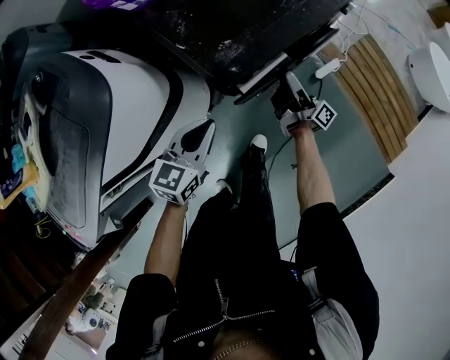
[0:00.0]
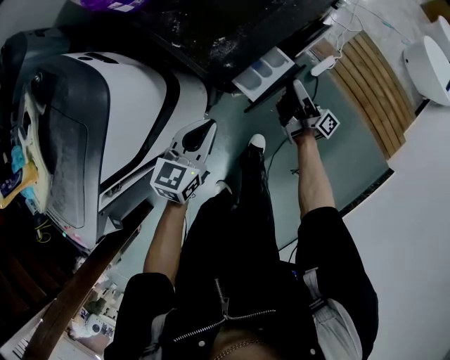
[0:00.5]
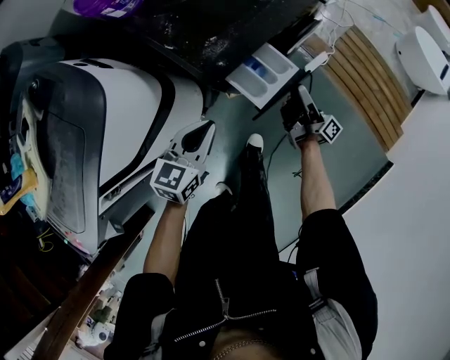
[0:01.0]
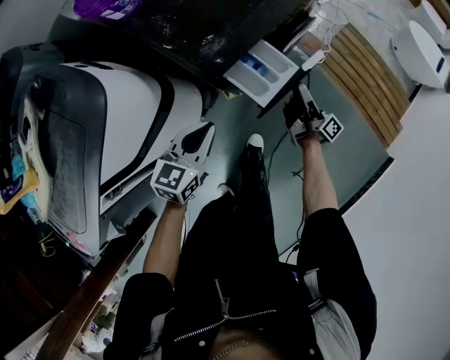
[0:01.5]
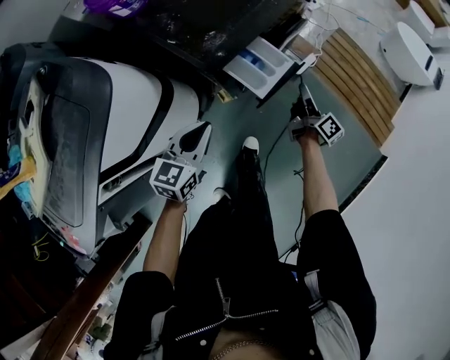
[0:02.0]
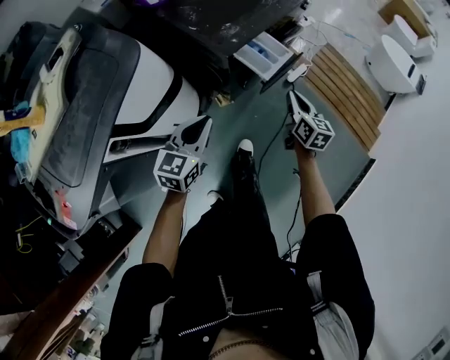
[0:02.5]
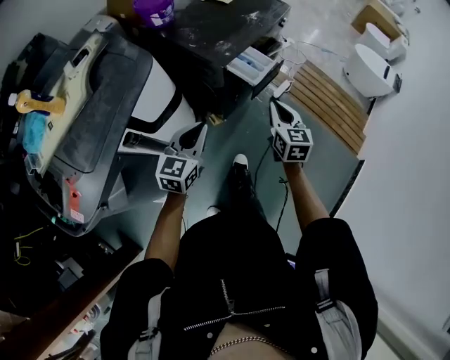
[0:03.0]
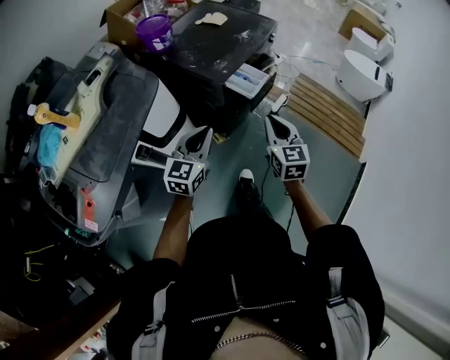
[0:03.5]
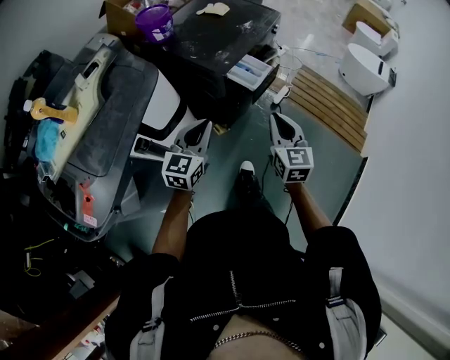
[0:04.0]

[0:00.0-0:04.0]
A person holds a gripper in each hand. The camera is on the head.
0:00.0 to 0:02.0: The left gripper travels backward by roughly 5 cm. Meanwhile the right gripper moves to the right and backward, about 15 cm, and swivels about 40 degrees.
0:02.0 to 0:04.0: The left gripper goes roughly 20 cm backward and upward, while the right gripper heads backward, upward and to the left, covering approximately 40 cm, and rolls counterclockwise, seen from behind, by approximately 70 degrees.

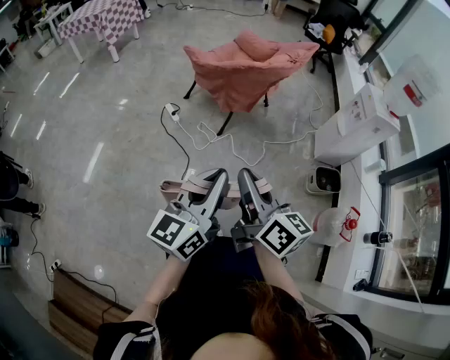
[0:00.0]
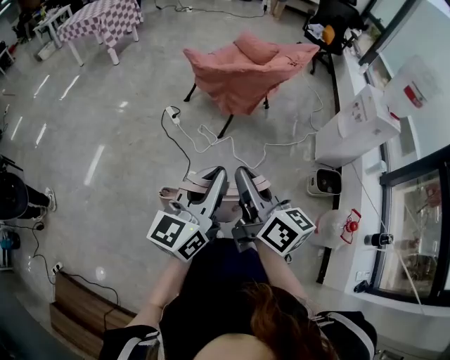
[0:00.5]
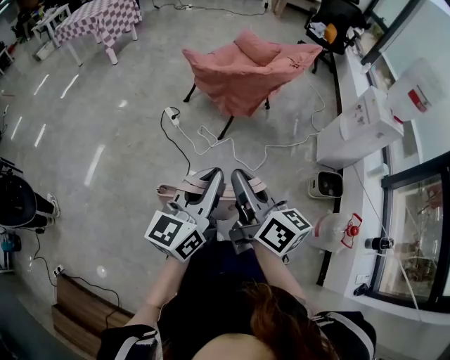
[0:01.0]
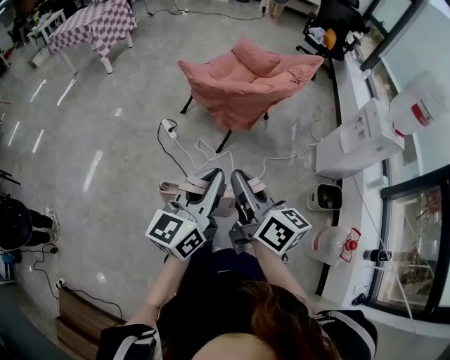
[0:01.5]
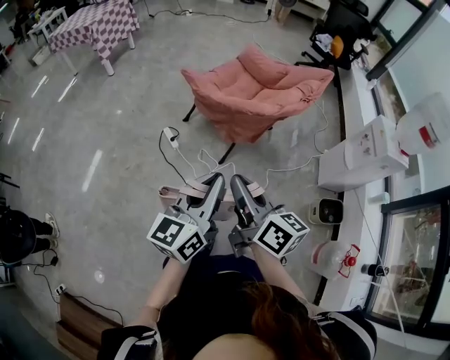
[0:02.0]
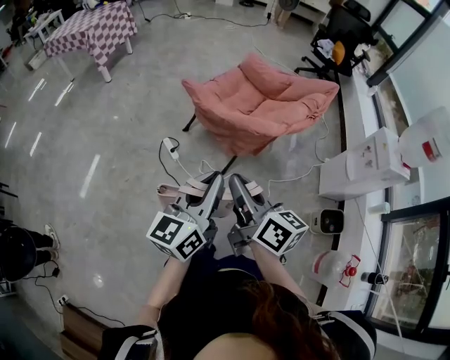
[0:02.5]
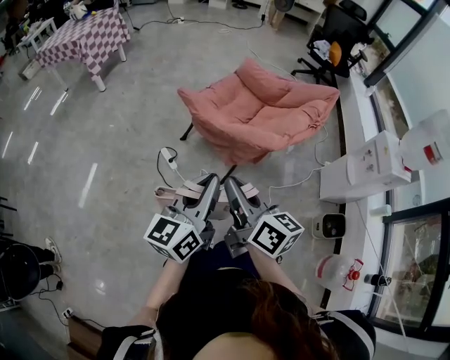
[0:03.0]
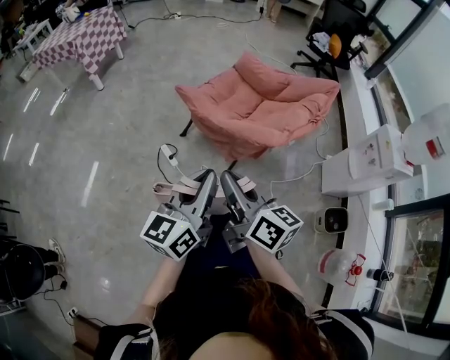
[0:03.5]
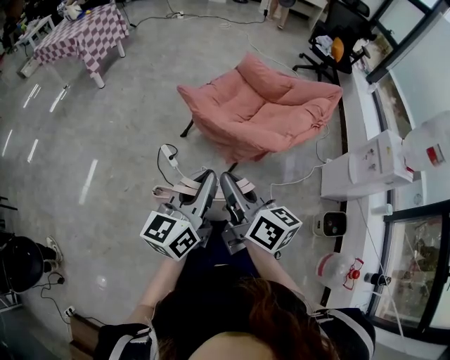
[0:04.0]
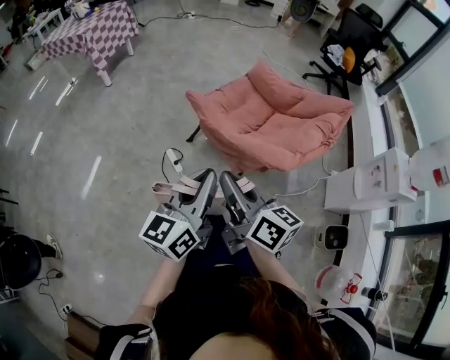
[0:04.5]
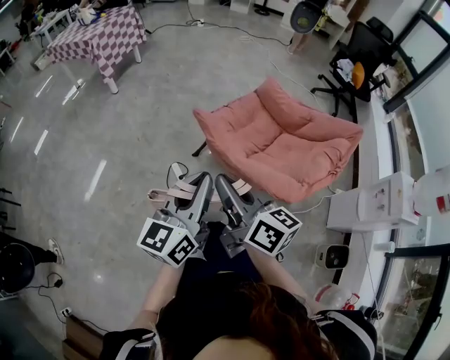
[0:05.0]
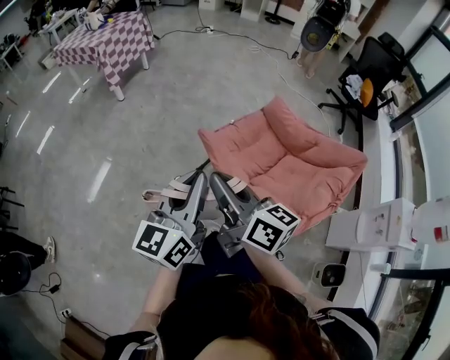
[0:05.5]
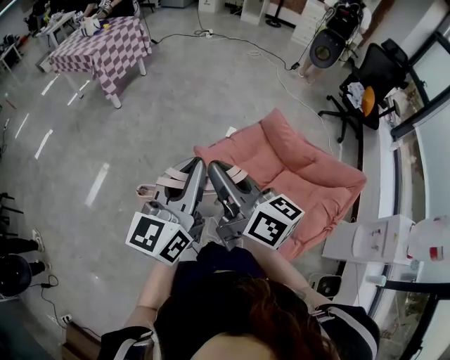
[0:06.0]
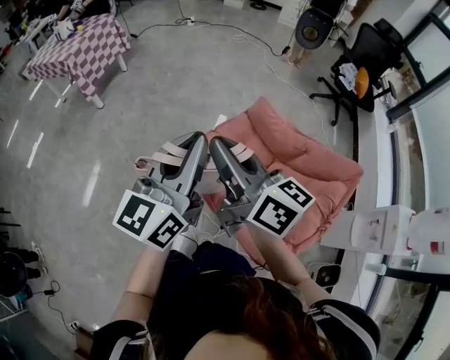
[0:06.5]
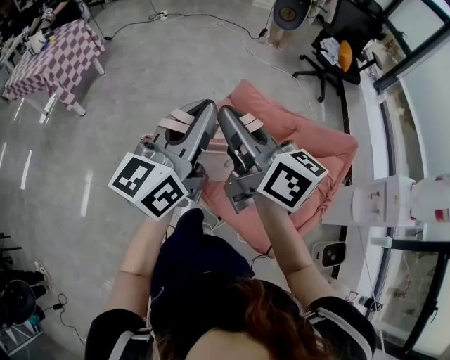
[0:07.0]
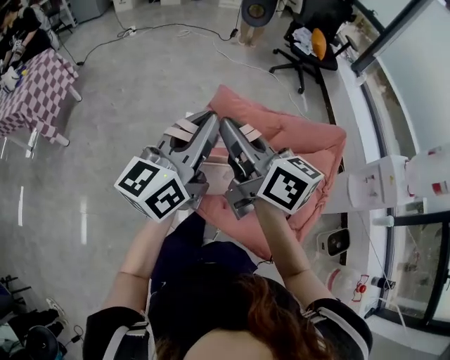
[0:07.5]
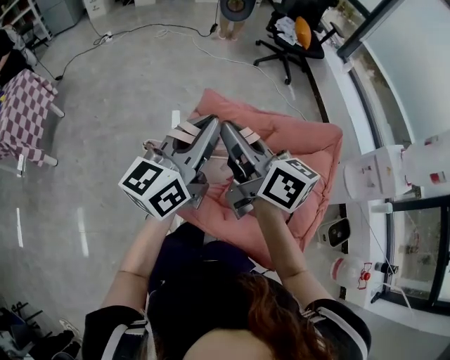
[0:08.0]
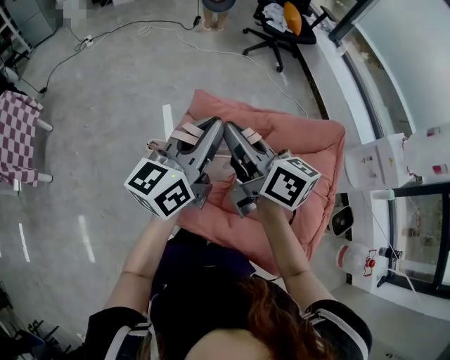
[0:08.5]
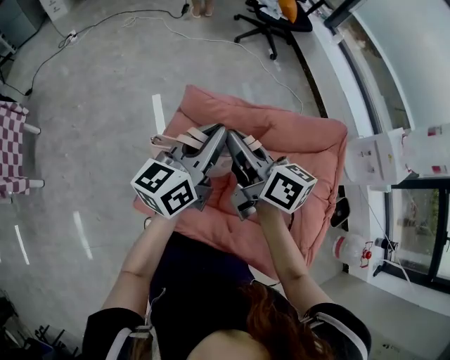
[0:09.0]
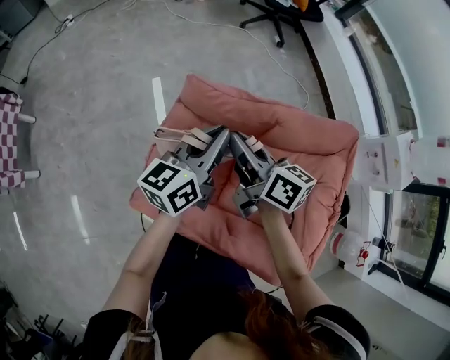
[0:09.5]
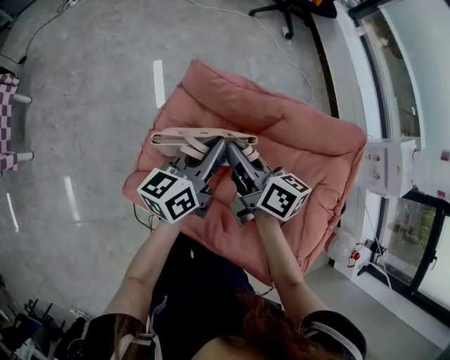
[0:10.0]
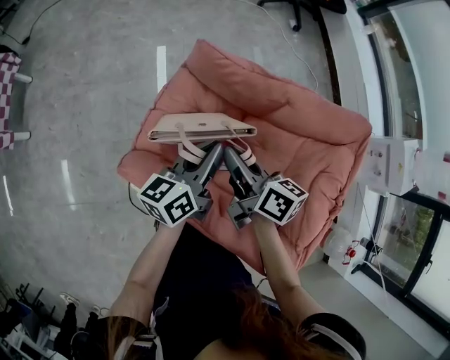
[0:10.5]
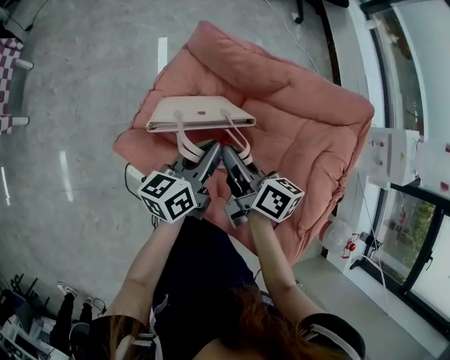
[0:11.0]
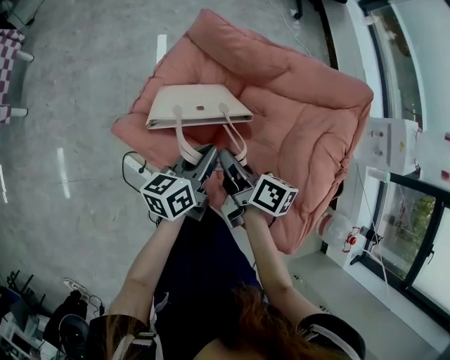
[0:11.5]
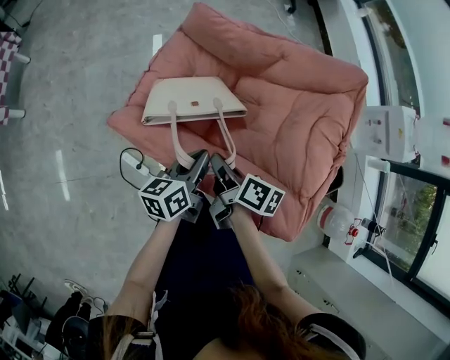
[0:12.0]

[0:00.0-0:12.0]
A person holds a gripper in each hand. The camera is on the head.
0:00.0 to 0:02.0: The two grippers go approximately 30 cm forward.
0:02.0 to 0:04.0: The two grippers go some 20 cm forward.
0:04.0 to 0:06.0: The two grippers travel together, forward, roughly 40 cm.
0:06.0 to 0:08.0: The right gripper changes place by some 35 cm, and changes its angle by approximately 30 degrees. Meanwhile the left gripper ends up some 35 cm from where it was, and turns by roughly 40 degrees.
0:08.0 to 0:10.0: The grippers both shift downward and forward by approximately 30 cm. The right gripper rotates about 20 degrees. Meanwhile the left gripper rotates about 30 degrees.
0:10.0 to 0:12.0: The two grippers go approximately 35 cm backward and downward. The right gripper changes its angle by roughly 20 degrees.

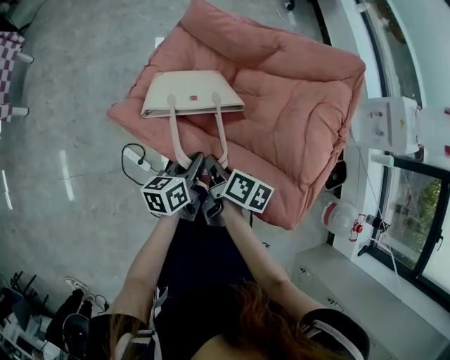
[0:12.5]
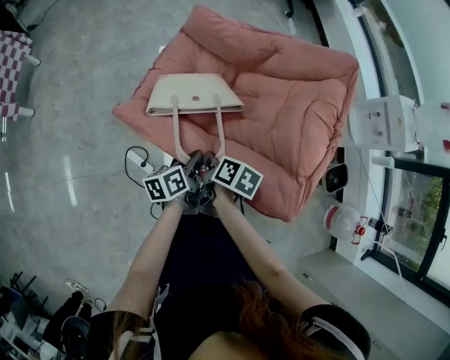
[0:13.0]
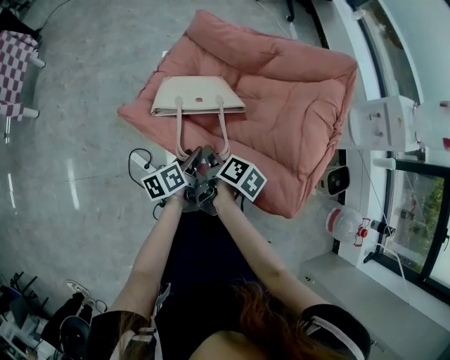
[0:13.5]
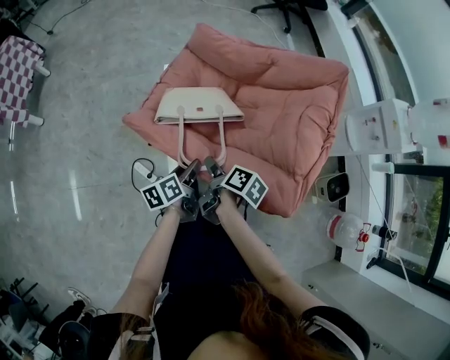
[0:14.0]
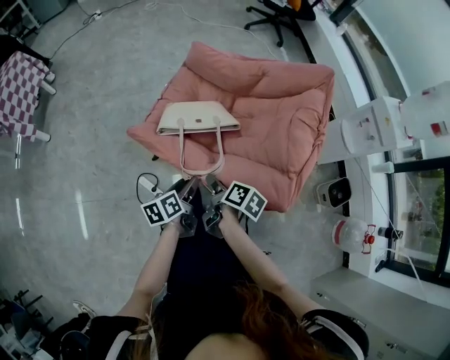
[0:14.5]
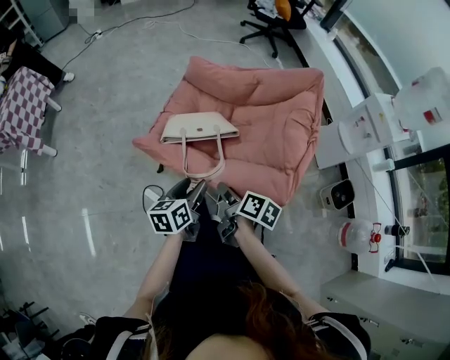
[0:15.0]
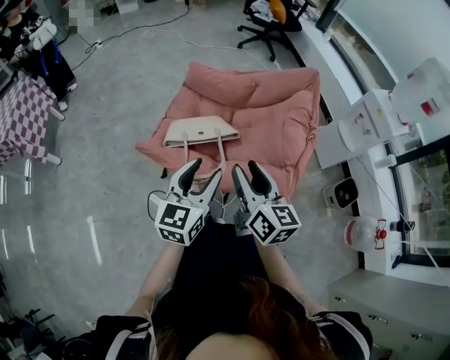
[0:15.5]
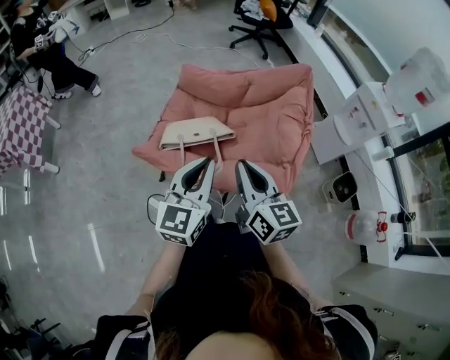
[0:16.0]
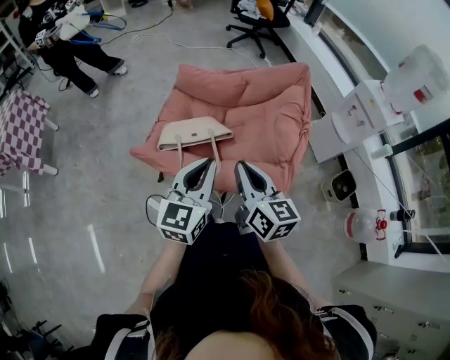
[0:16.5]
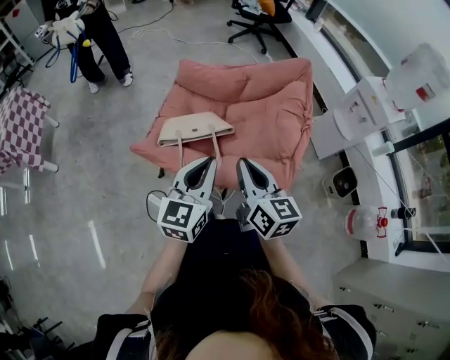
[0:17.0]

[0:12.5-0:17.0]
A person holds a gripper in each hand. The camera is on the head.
0:12.5 to 0:14.5: The grippers both shift backward by roughly 10 cm. The left gripper opens up, while the right gripper opens up.
0:14.5 to 0:17.0: Both grippers move upward, roughly 20 cm. The left gripper rolls clockwise, seen from behind, by roughly 50 degrees, and closes. The right gripper points its fingers approximately 30 degrees further upward, and closes up.

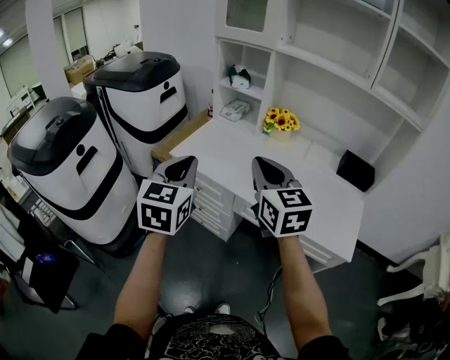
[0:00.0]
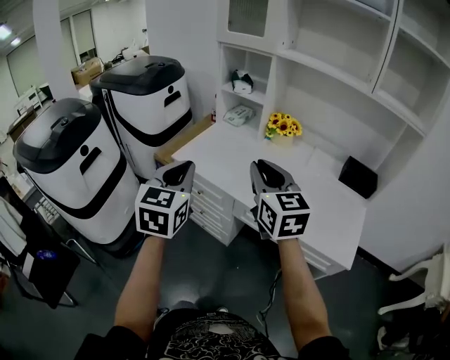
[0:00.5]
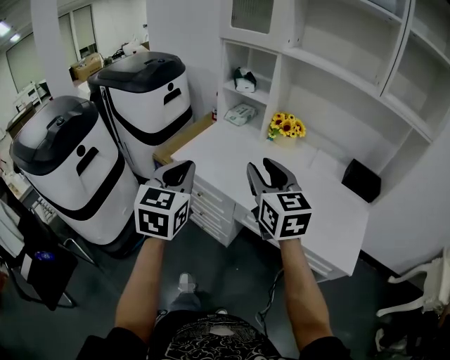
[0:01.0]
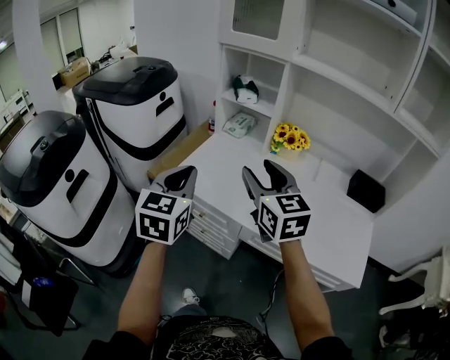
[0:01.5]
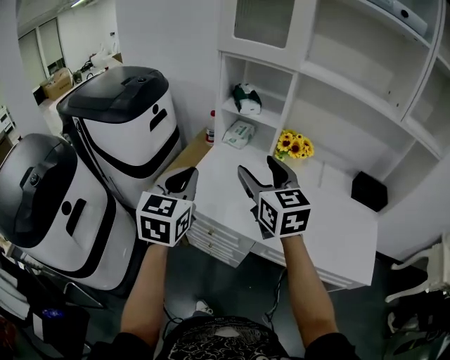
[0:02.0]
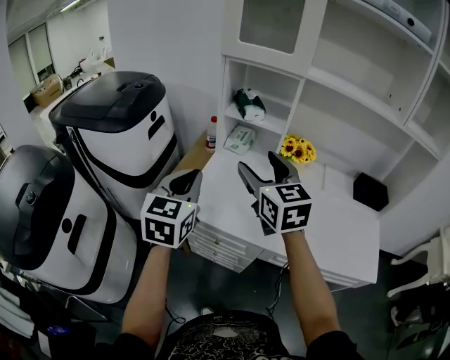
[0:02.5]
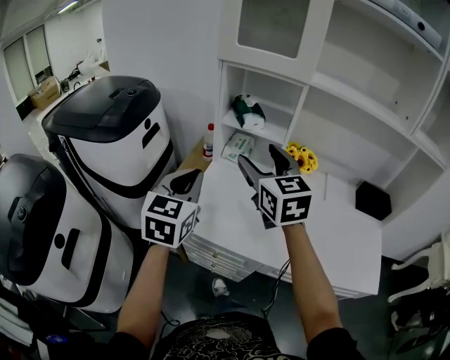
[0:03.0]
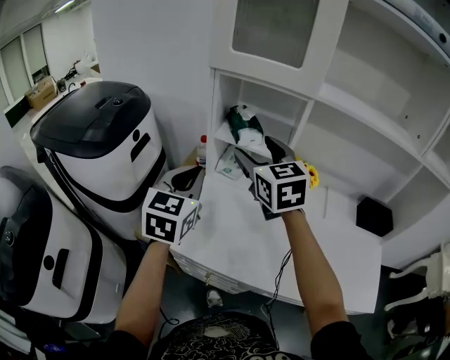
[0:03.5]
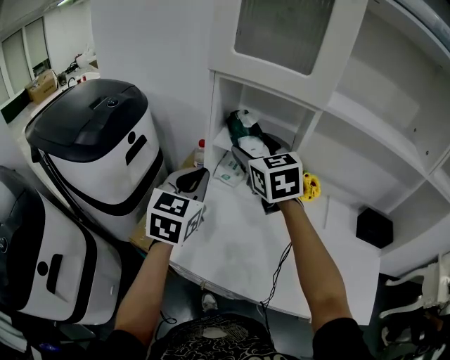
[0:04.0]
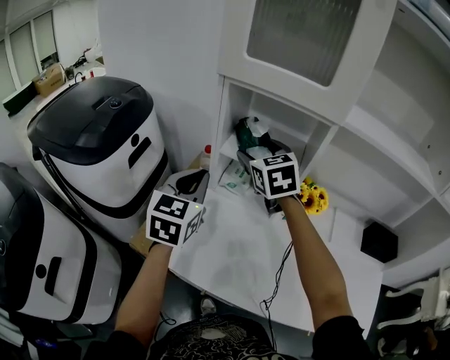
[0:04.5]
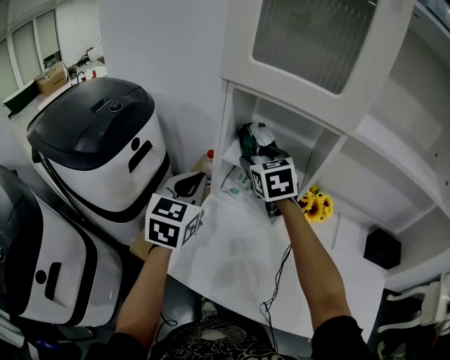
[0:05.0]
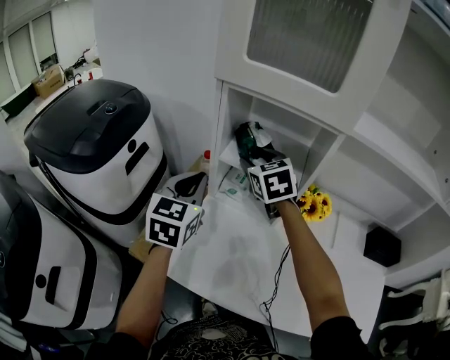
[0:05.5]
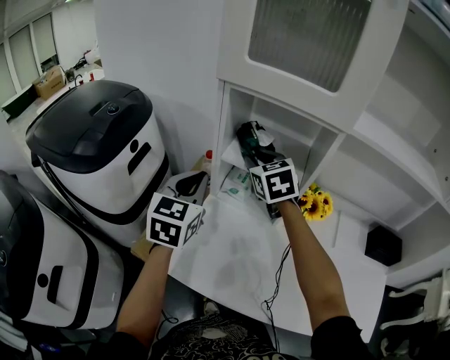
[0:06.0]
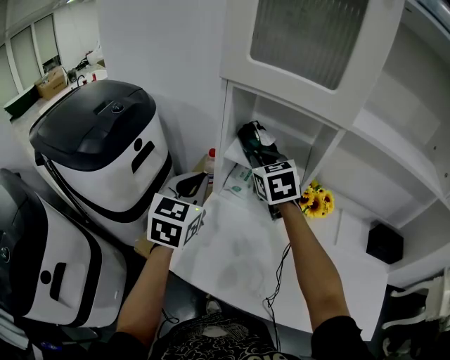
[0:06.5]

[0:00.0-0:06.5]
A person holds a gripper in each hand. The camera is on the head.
0:00.0 to 0:02.0: The grippers both shift forward by roughly 20 cm. The right gripper opens.
0:02.0 to 0:04.5: The grippers both shift forward by some 30 cm.
0:04.5 to 0:06.5: The right gripper closes.
